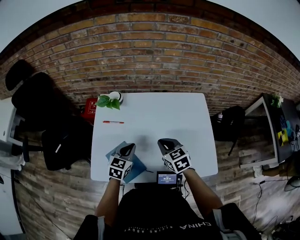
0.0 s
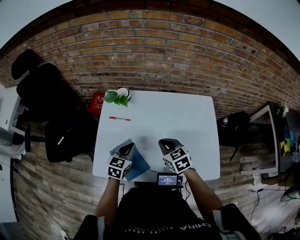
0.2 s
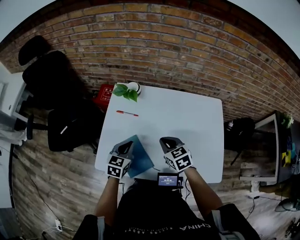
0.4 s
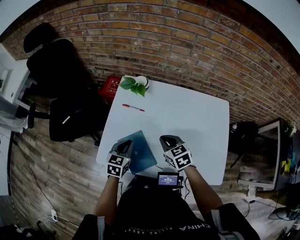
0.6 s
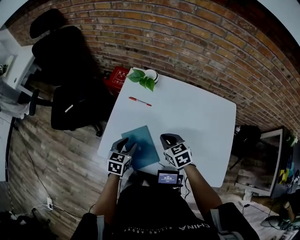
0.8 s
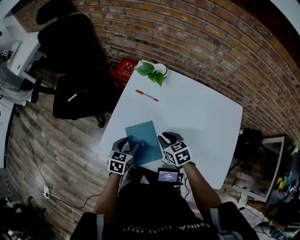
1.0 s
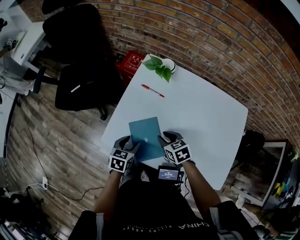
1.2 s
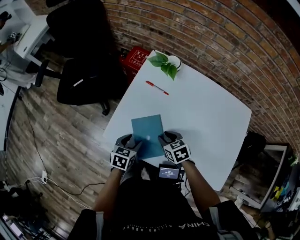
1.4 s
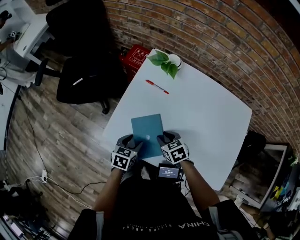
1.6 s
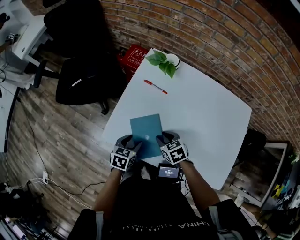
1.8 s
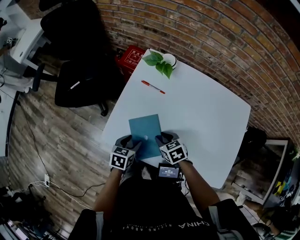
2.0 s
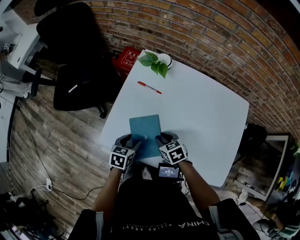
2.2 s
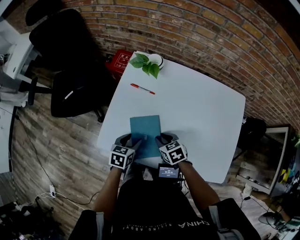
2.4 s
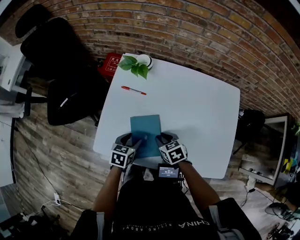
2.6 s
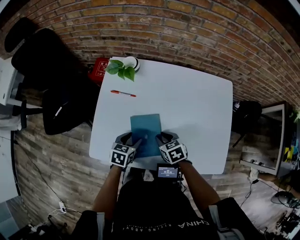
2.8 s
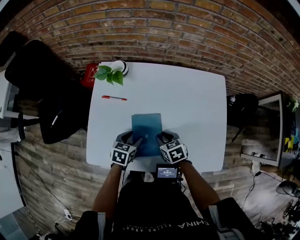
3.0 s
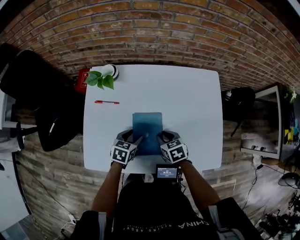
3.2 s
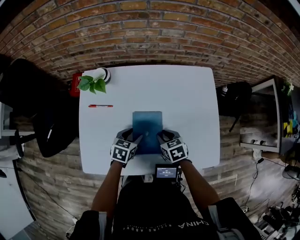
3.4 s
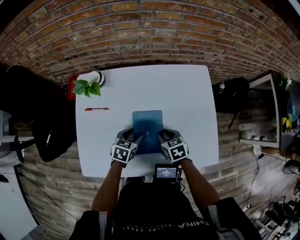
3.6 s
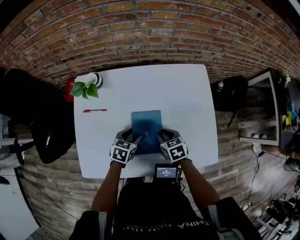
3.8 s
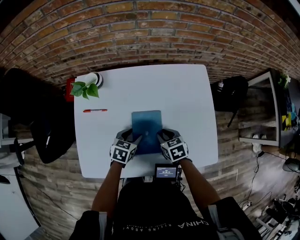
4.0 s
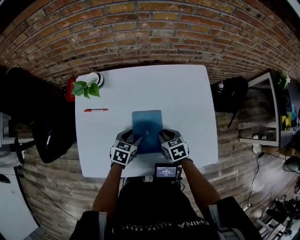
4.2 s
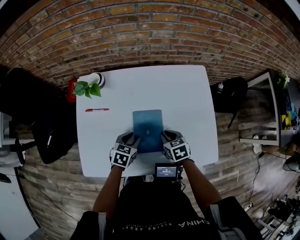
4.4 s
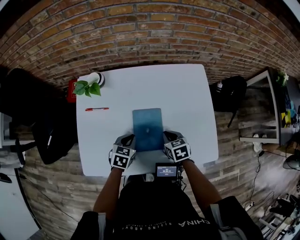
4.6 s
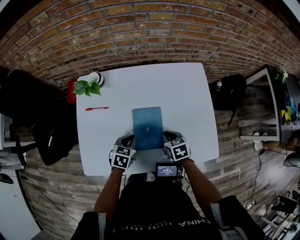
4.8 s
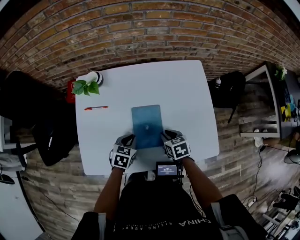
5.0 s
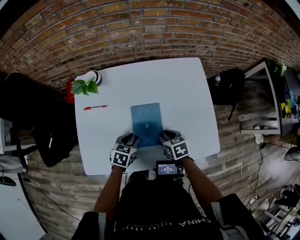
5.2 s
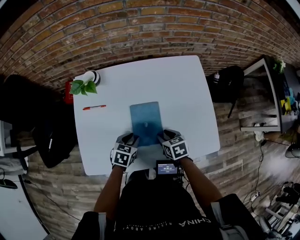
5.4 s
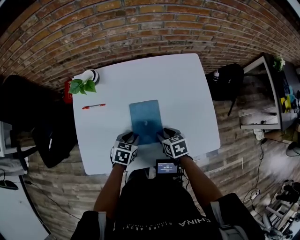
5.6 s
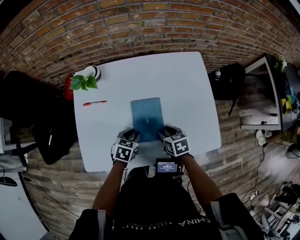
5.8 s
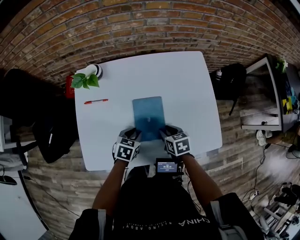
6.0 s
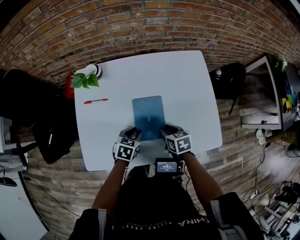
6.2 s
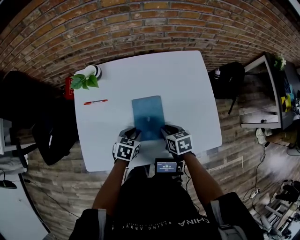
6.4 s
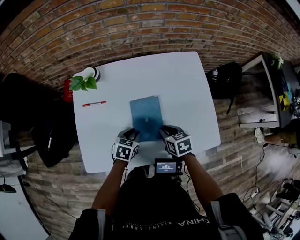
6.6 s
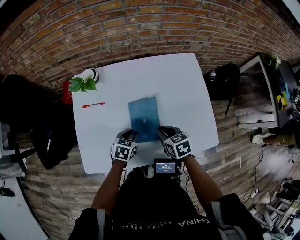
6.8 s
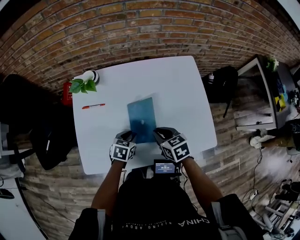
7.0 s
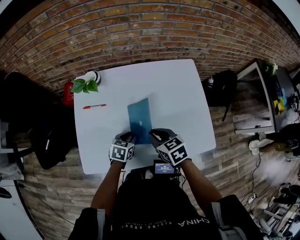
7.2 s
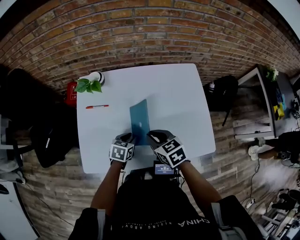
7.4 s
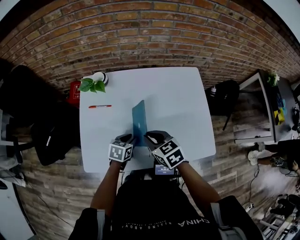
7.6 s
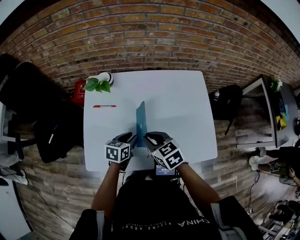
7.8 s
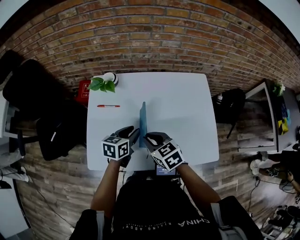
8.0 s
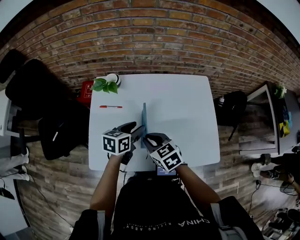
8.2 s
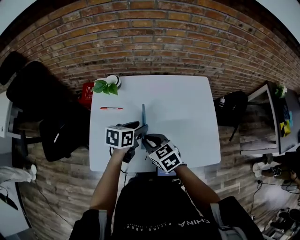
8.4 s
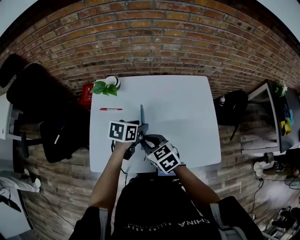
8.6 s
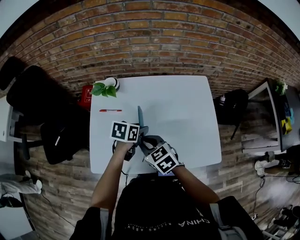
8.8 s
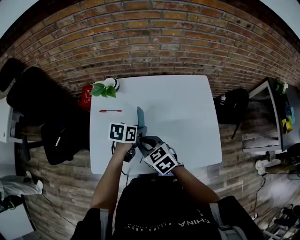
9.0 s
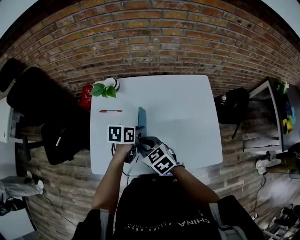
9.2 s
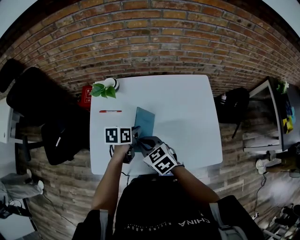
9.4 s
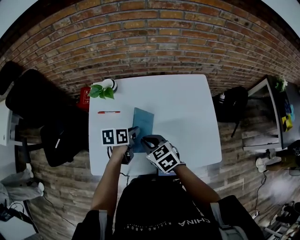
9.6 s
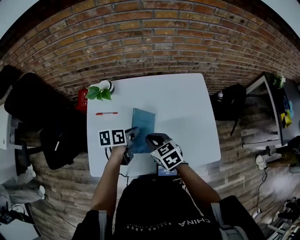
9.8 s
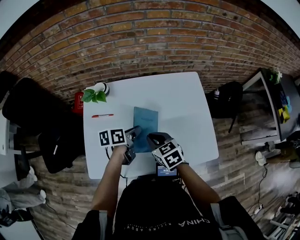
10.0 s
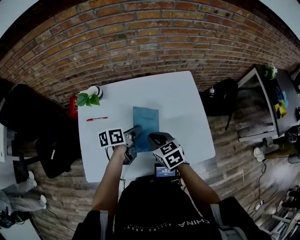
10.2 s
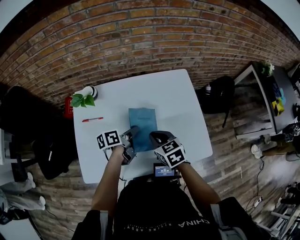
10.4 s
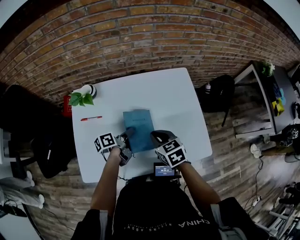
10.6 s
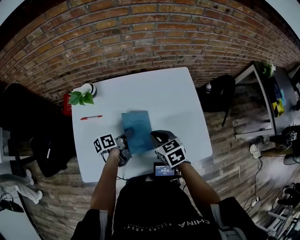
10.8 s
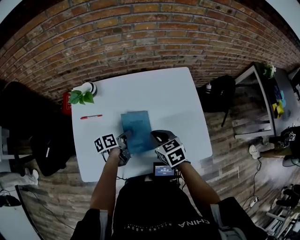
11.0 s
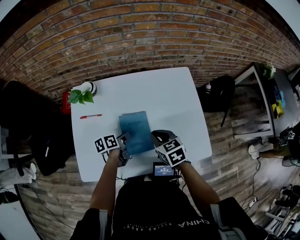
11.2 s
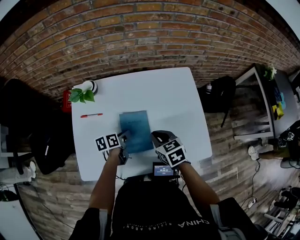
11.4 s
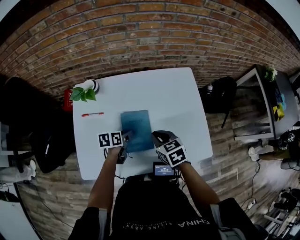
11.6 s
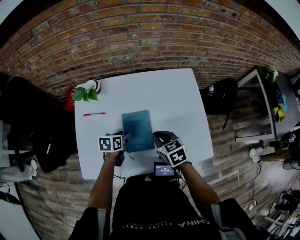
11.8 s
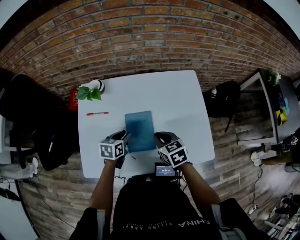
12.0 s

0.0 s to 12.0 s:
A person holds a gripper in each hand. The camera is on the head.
0.0 to 1.6 s: The left gripper moves approximately 20 cm, turns by roughly 40 degrees, and opens. Meanwhile the right gripper heads downward, covering some 15 cm, swivels approximately 30 degrees, and opens its fingers.
1.6 to 3.0 s: The left gripper travels to the right and forward by approximately 15 cm, and swivels about 20 degrees. The right gripper heads to the right, covering about 15 cm, and changes its angle by approximately 20 degrees.
3.0 to 4.4 s: The grippers both shift to the right by about 10 cm.
4.4 to 6.0 s: The left gripper closes, then reopens.
6.0 to 7.6 s: The right gripper travels upward and to the left by roughly 15 cm, and changes its angle by approximately 30 degrees.
7.6 to 9.0 s: The left gripper shifts some 10 cm upward and forward; the right gripper is displaced to the left by about 5 cm.
9.0 to 10.4 s: The left gripper moves to the right, about 5 cm, swivels some 40 degrees, and closes its fingers. Meanwhile the right gripper goes some 15 cm to the right, and changes its angle by approximately 20 degrees.
10.4 to 12.0 s: The left gripper heads to the left, covering some 5 cm, swivels approximately 40 degrees, and opens its fingers.

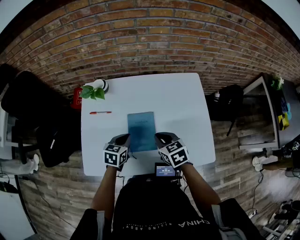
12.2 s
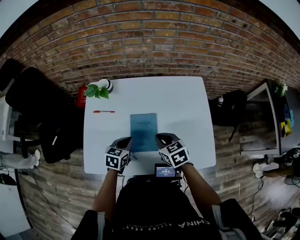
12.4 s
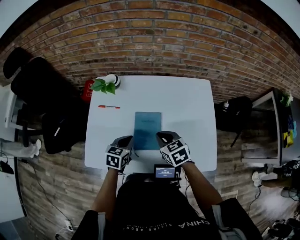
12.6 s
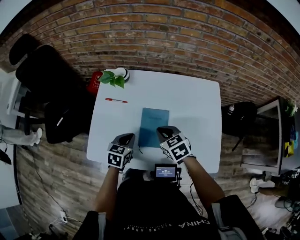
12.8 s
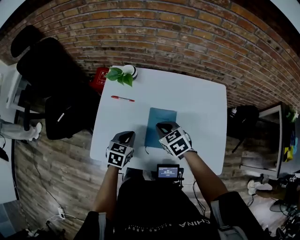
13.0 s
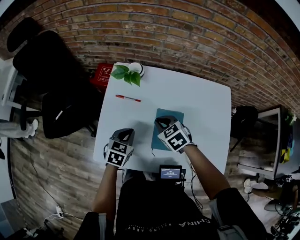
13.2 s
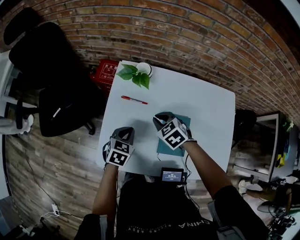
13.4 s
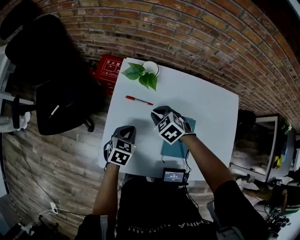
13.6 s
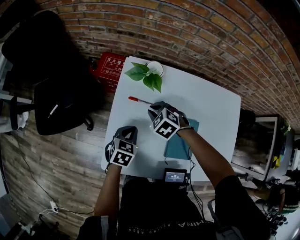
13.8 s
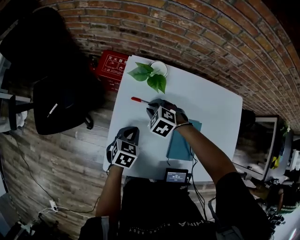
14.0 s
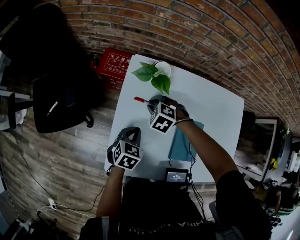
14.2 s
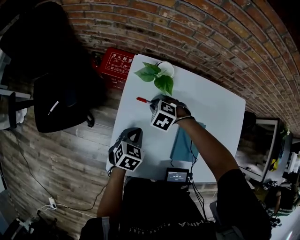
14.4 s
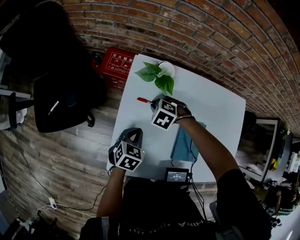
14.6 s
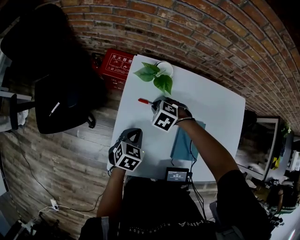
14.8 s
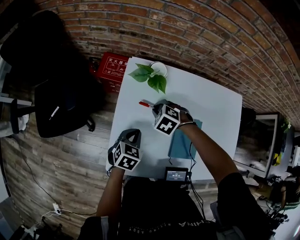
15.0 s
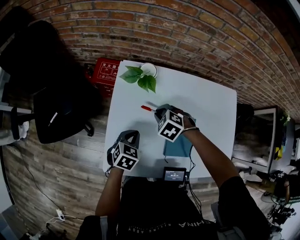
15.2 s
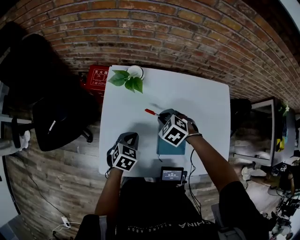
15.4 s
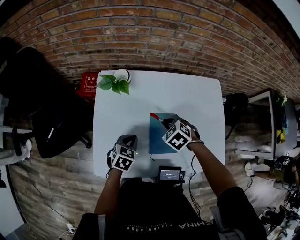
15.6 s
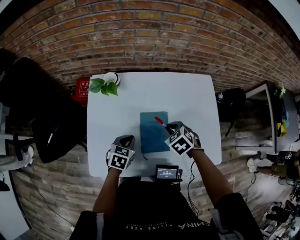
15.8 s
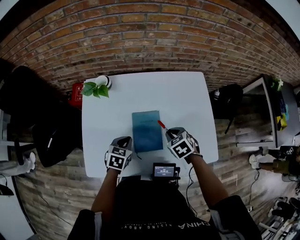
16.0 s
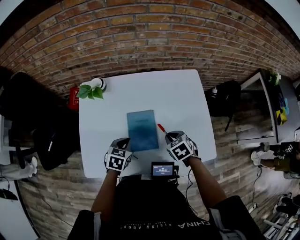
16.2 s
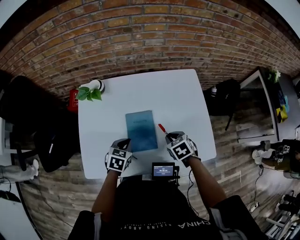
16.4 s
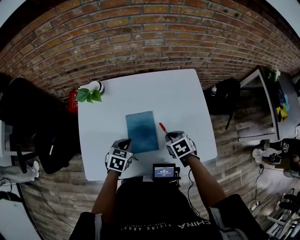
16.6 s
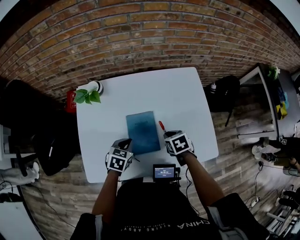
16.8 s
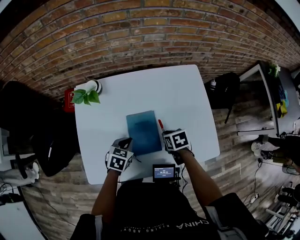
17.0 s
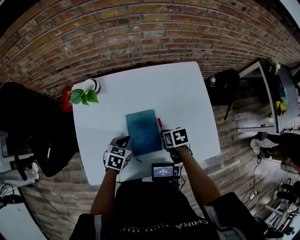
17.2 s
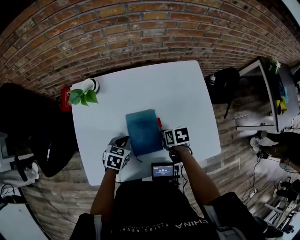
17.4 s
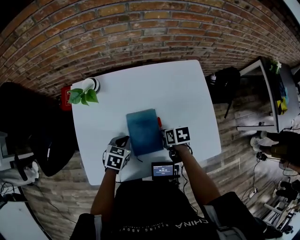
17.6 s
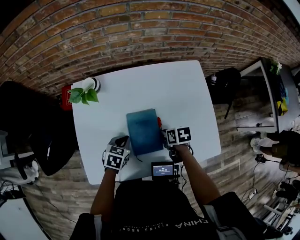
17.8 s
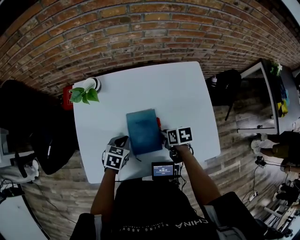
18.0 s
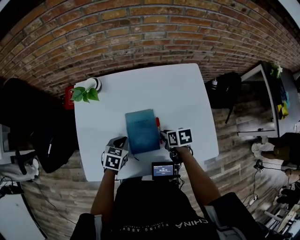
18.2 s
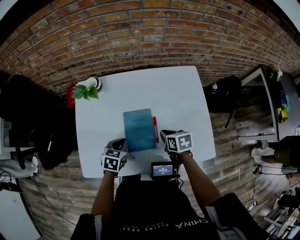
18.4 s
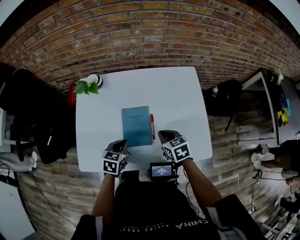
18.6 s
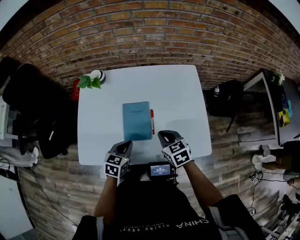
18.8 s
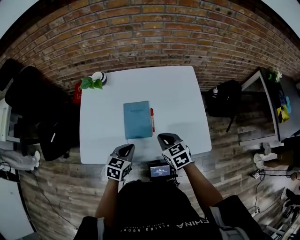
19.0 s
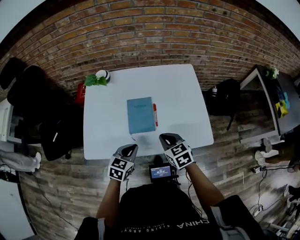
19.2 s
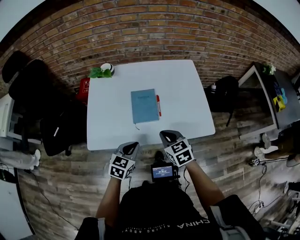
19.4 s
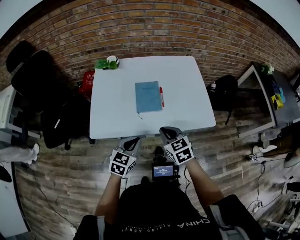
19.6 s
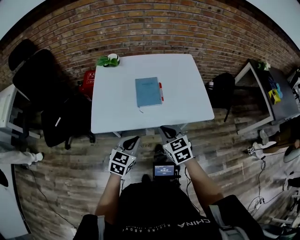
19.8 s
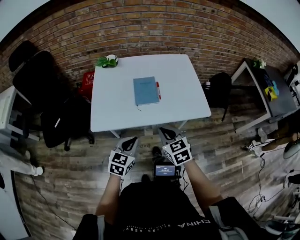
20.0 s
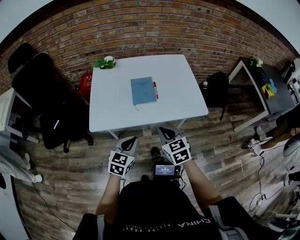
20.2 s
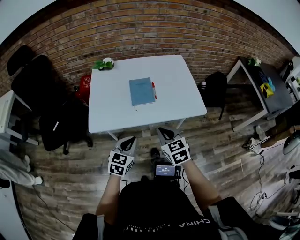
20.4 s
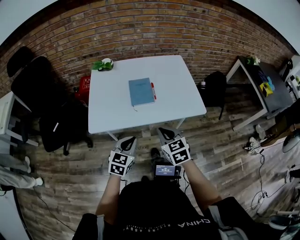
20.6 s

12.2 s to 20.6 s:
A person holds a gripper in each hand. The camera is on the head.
12.2 to 13.6 s: The right gripper moves to the left and forward, some 25 cm, and turns by roughly 40 degrees. Meanwhile the left gripper goes roughly 15 cm to the left.
15.0 to 16.4 s: The right gripper is displaced to the right and backward by approximately 40 cm, and rolls clockwise, seen from behind, by about 50 degrees, while the left gripper is displaced to the right by some 20 cm.
16.4 to 17.8 s: The left gripper ends up some 5 cm from where it was. The right gripper heads downward, covering some 5 cm, and swivels approximately 40 degrees.
17.8 to 19.2 s: The two grippers go roughly 20 cm backward and upward. The right gripper rotates approximately 50 degrees.
19.2 to 20.6 s: Both grippers travel together backward, roughly 20 cm.

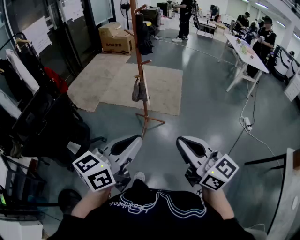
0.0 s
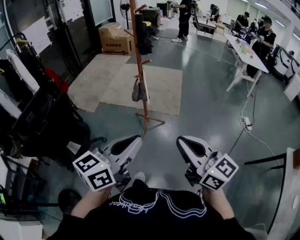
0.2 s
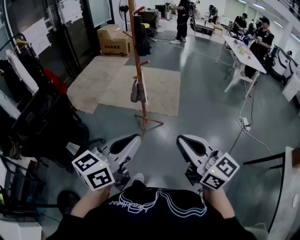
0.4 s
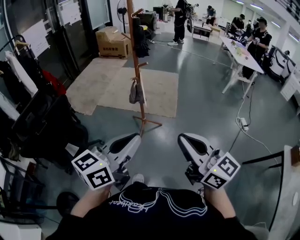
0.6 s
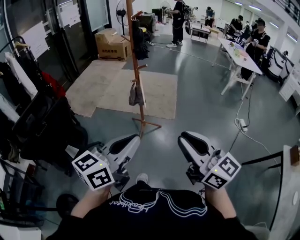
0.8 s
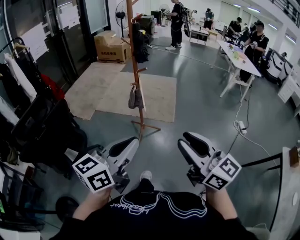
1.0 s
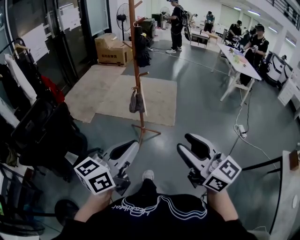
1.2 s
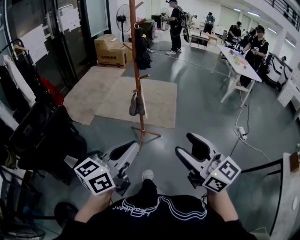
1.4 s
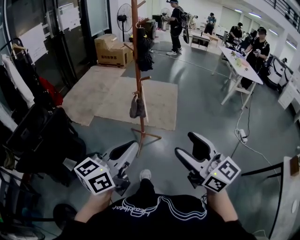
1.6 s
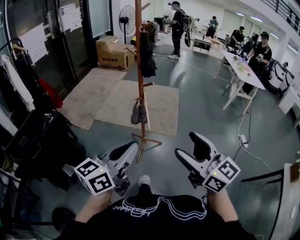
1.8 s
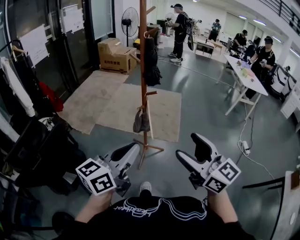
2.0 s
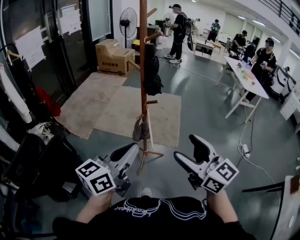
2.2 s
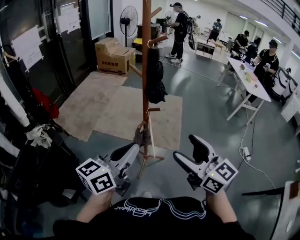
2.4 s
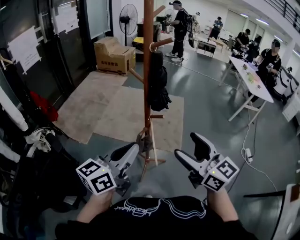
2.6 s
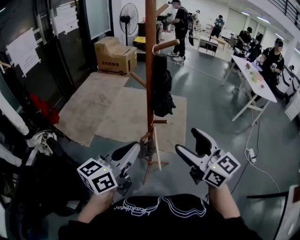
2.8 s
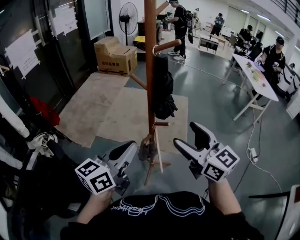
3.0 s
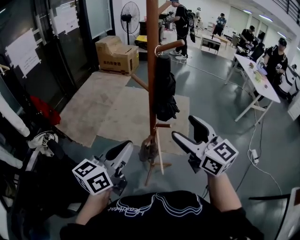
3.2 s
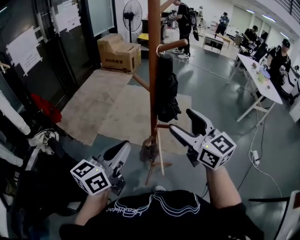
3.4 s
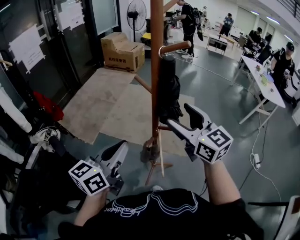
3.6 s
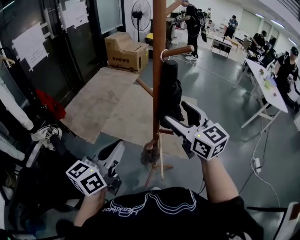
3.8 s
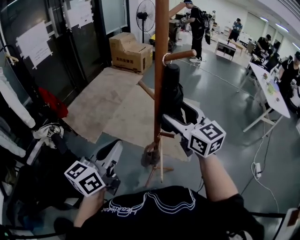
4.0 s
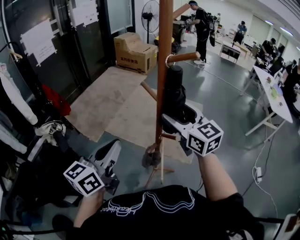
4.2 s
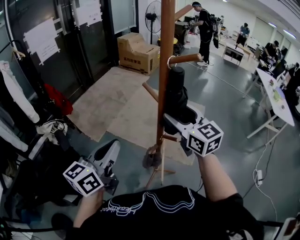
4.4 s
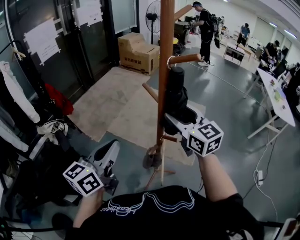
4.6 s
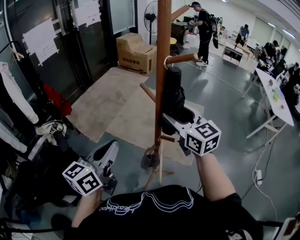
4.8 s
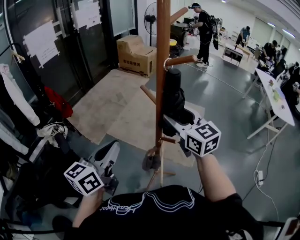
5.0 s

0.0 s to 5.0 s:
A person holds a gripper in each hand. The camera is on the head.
0.0 to 1.6 s: The two grippers go about 5 cm forward. The right gripper opens its fingers.
1.6 to 3.4 s: Both grippers travel together forward, about 40 cm.
3.4 to 5.0 s: The left gripper ends up some 5 cm from where it was. Meanwhile the right gripper goes roughly 10 cm forward.
